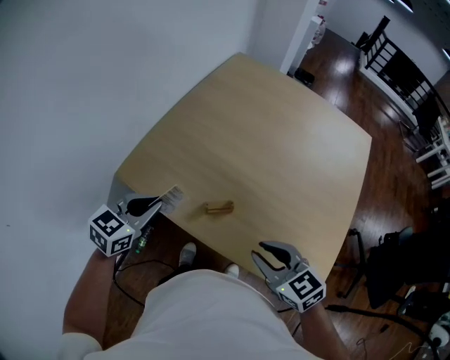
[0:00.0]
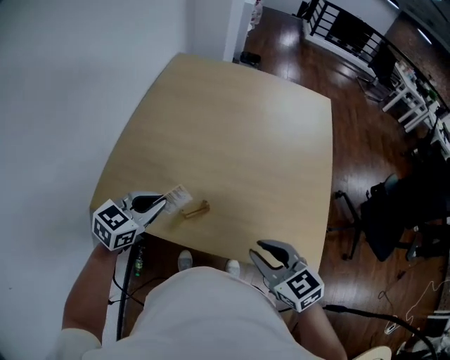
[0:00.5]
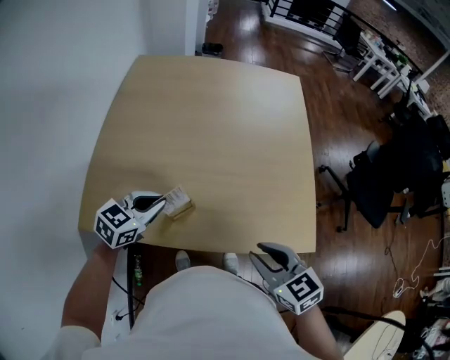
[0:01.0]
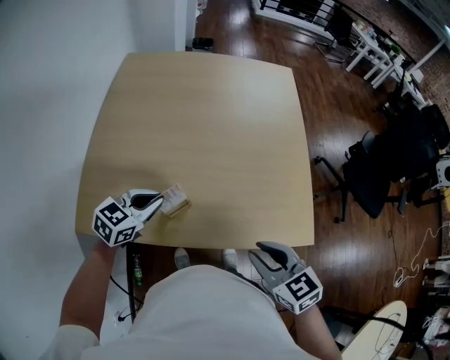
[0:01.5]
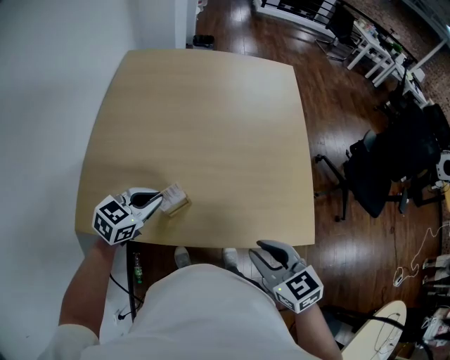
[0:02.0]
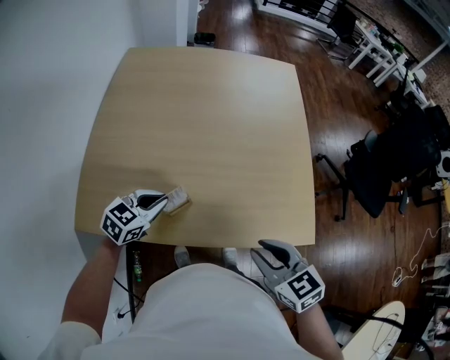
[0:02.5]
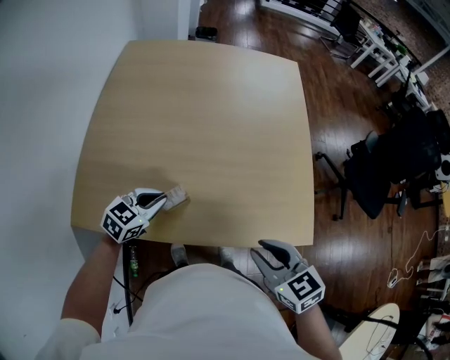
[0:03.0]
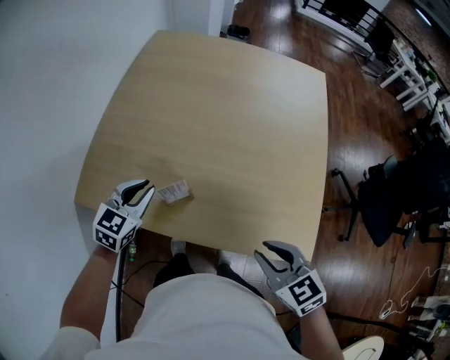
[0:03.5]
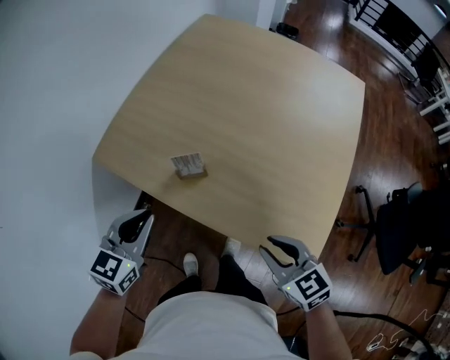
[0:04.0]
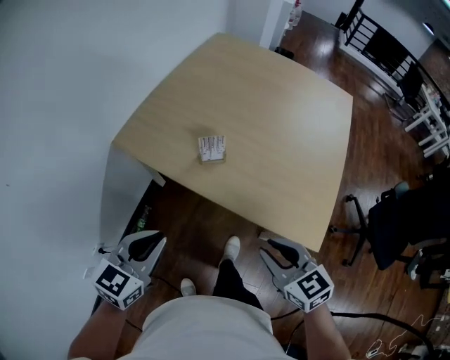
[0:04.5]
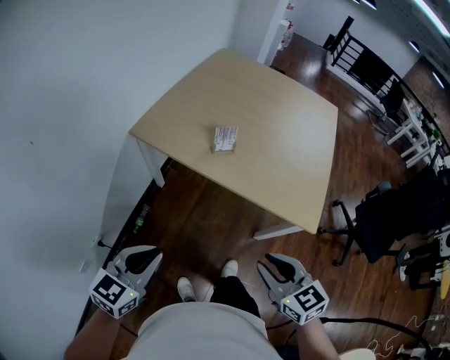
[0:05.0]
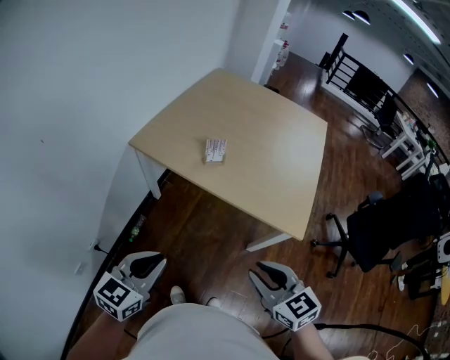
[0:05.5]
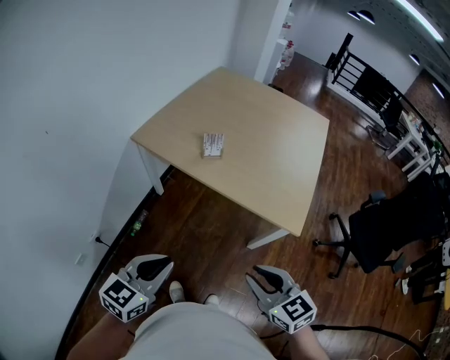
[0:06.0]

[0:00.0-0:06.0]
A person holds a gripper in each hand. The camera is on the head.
0:00.0 to 0:02.0: The left gripper moves roughly 15 cm, and turns by about 30 degrees, while the right gripper moves roughly 10 cm, and swivels about 30 degrees.
0:02.0 to 0:04.0: The right gripper changes place by roughly 5 cm, and swivels about 30 degrees. The left gripper ends up approximately 15 cm from where it was, and turns by about 40 degrees.
0:04.0 to 0:06.0: The two grippers go approximately 35 cm backward.

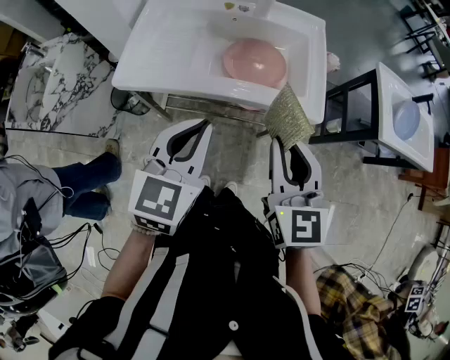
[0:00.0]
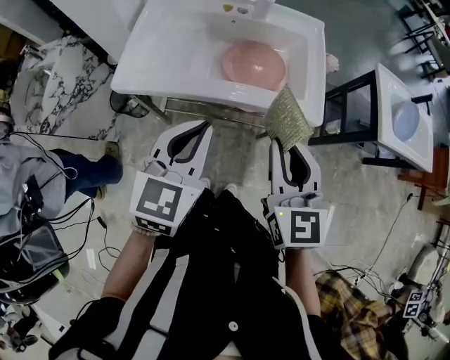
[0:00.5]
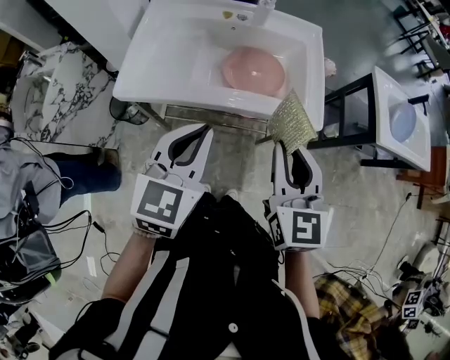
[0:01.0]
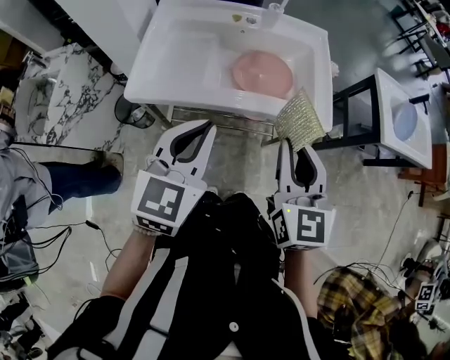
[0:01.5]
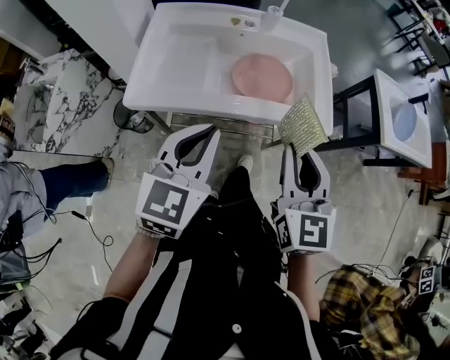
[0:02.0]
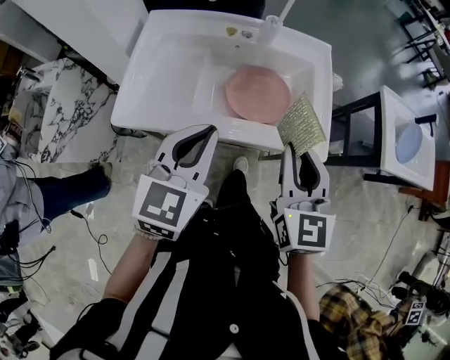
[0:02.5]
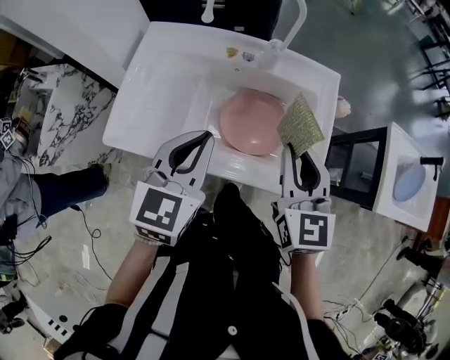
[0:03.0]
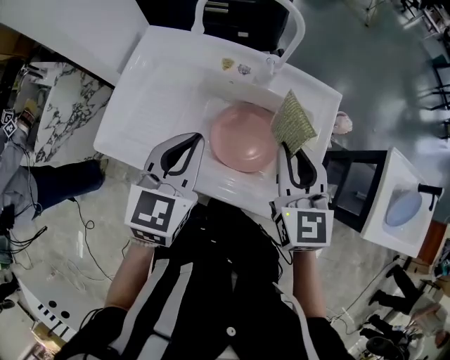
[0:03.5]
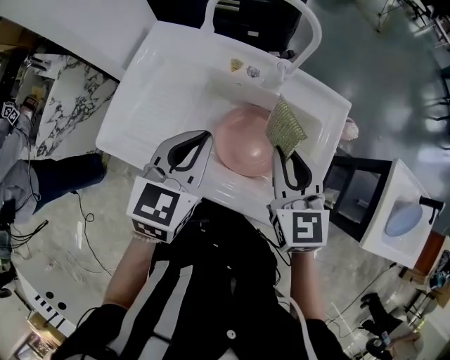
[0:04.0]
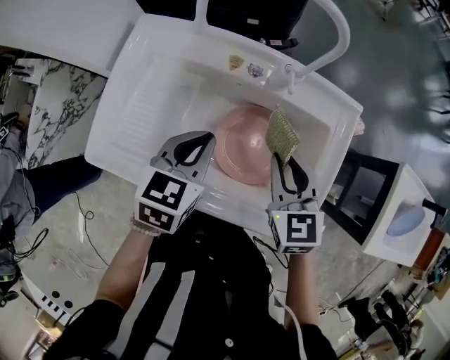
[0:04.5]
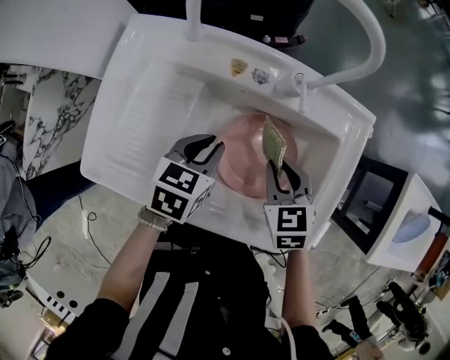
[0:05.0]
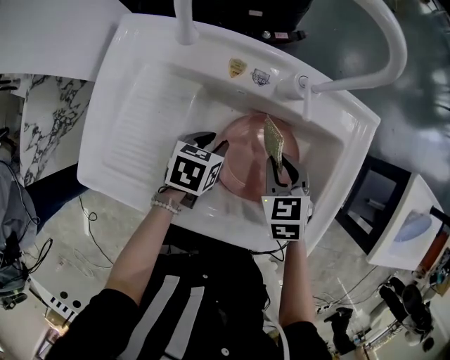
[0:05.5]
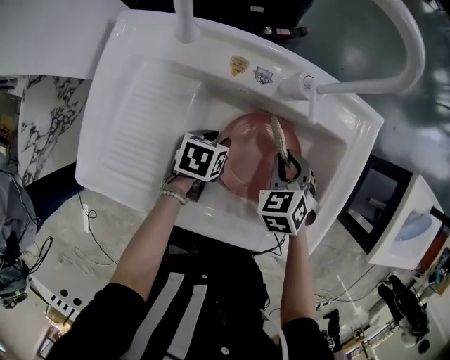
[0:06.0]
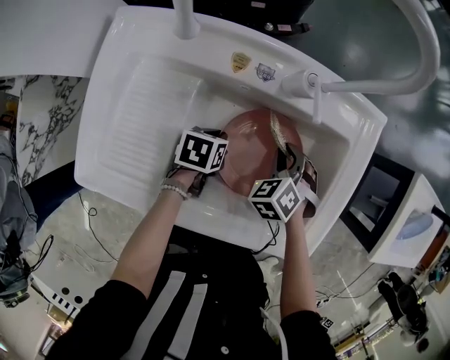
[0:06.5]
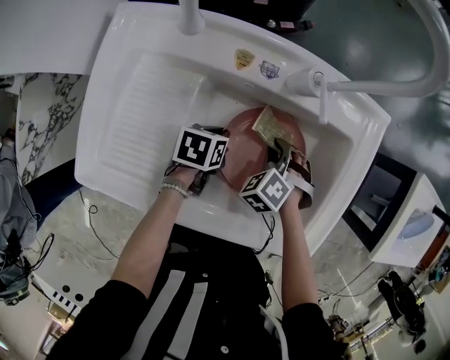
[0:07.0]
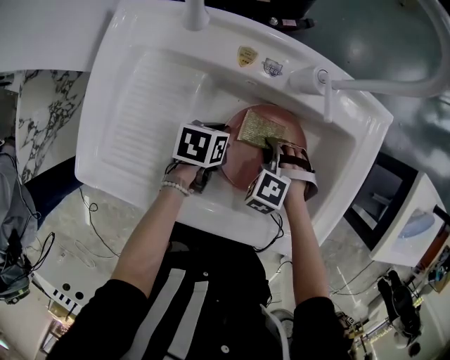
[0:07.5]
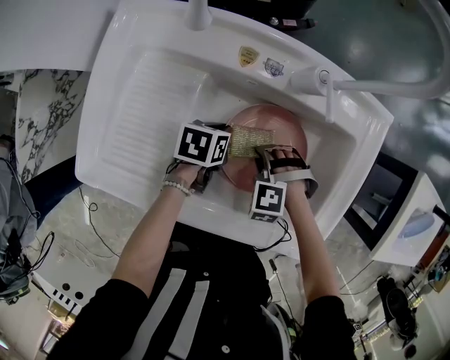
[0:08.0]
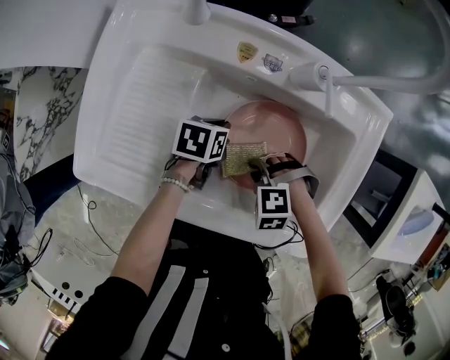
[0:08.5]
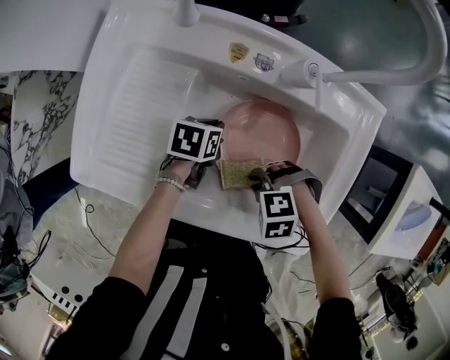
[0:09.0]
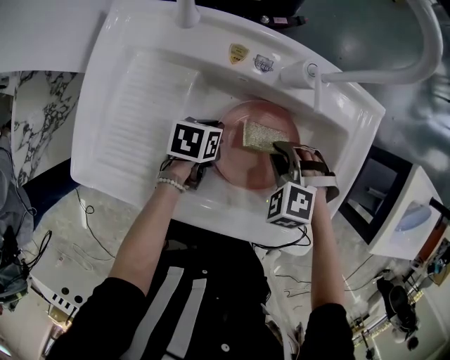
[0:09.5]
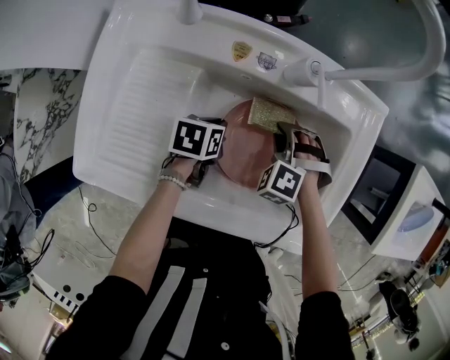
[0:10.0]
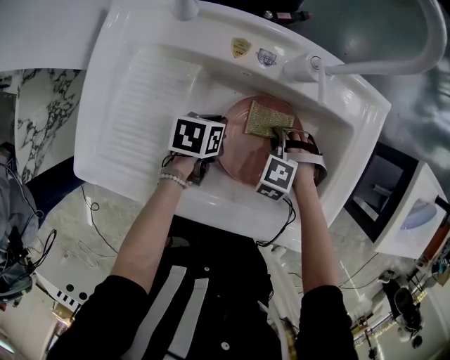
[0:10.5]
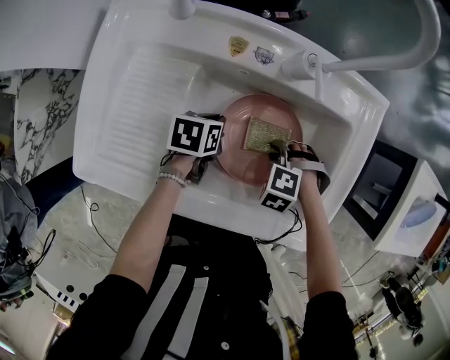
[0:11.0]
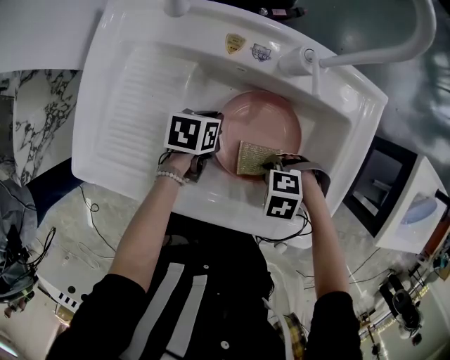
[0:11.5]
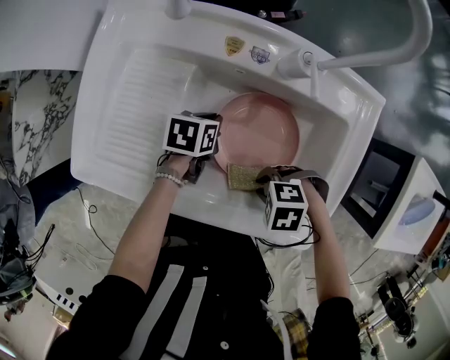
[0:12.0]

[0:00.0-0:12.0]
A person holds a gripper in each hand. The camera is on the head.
0:00.0 to 0:02.0: The left gripper heads to the left, covering some 5 cm.
0:02.0 to 0:04.0: Both grippers move forward, some 30 cm. The left gripper turns by approximately 20 degrees. Meanwhile the right gripper turns by some 30 degrees.
0:04.0 to 0:06.0: Both grippers move downward, roughly 25 cm. The left gripper tilts its fingers about 40 degrees downward, and opens its fingers, while the right gripper points its fingers some 40 degrees further downward.
0:06.0 to 0:08.0: The left gripper closes its fingers. Meanwhile the right gripper goes some 10 cm backward and downward, and twists approximately 60 degrees counterclockwise, seen from behind.
0:08.0 to 0:10.0: The right gripper moves approximately 10 cm, and changes its angle by some 20 degrees.
0:10.0 to 0:12.0: The right gripper ends up about 20 cm from where it was, and turns by some 50 degrees.

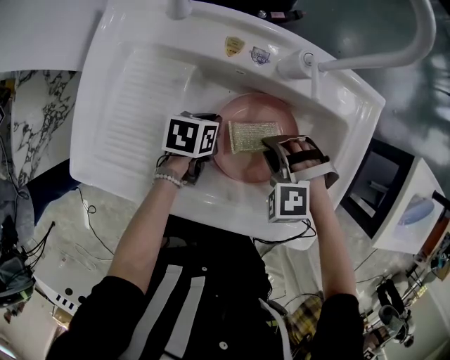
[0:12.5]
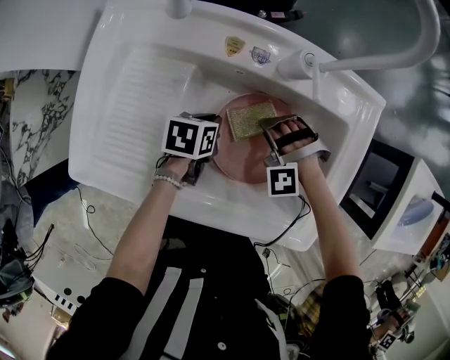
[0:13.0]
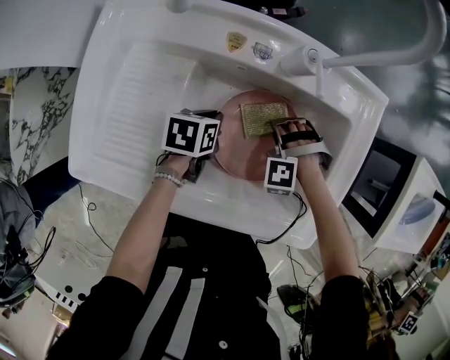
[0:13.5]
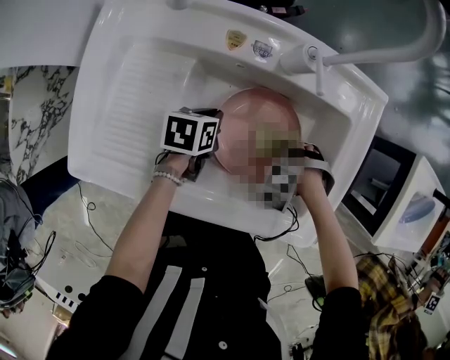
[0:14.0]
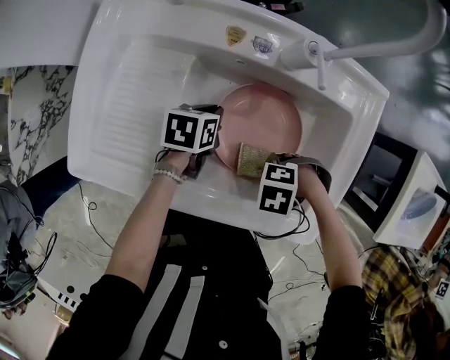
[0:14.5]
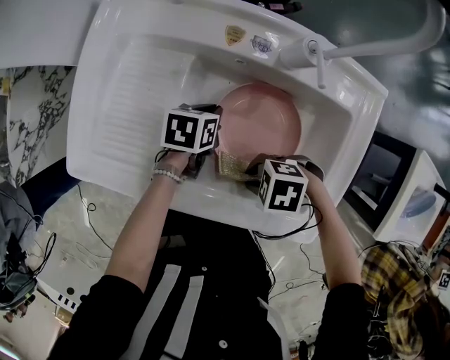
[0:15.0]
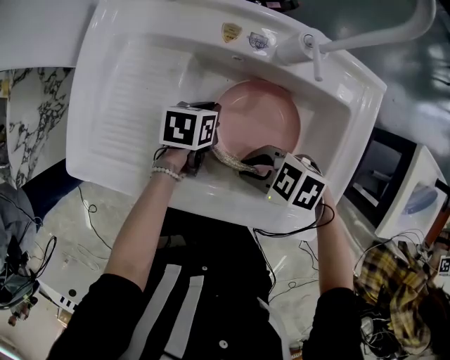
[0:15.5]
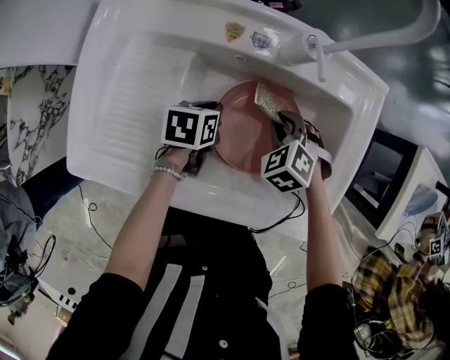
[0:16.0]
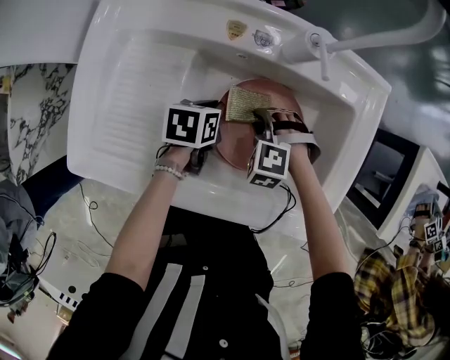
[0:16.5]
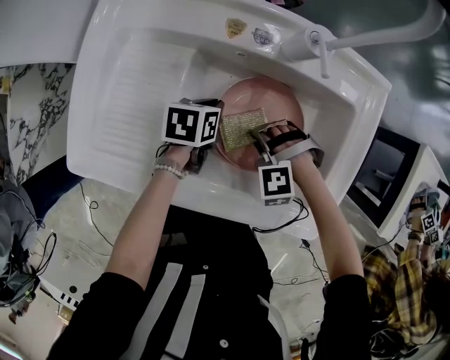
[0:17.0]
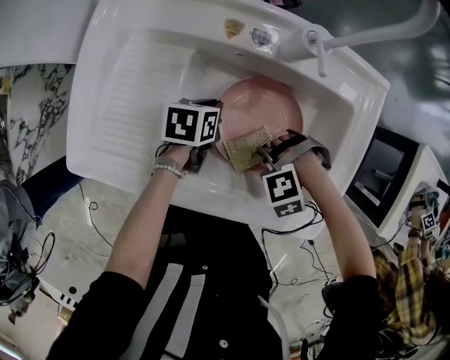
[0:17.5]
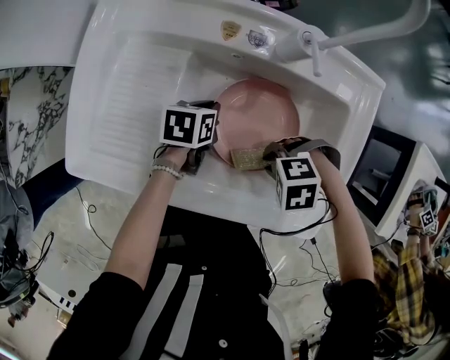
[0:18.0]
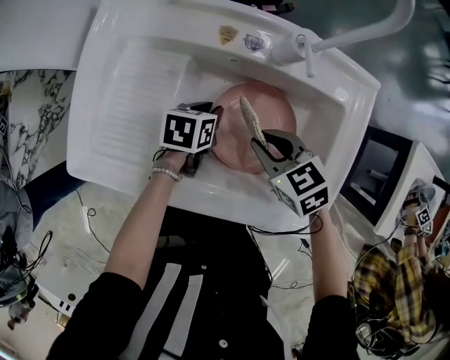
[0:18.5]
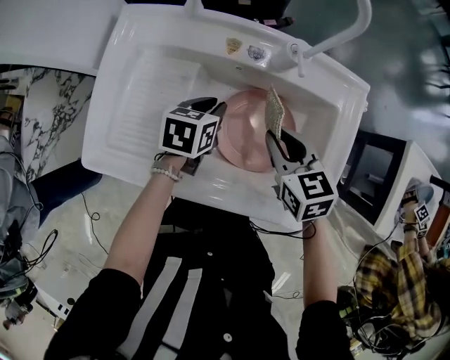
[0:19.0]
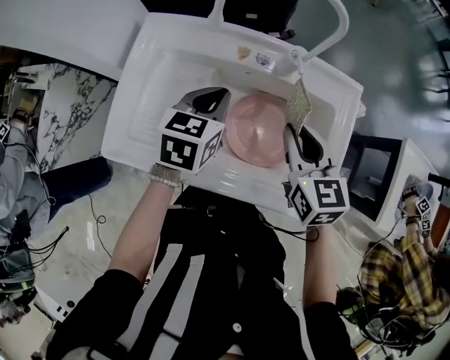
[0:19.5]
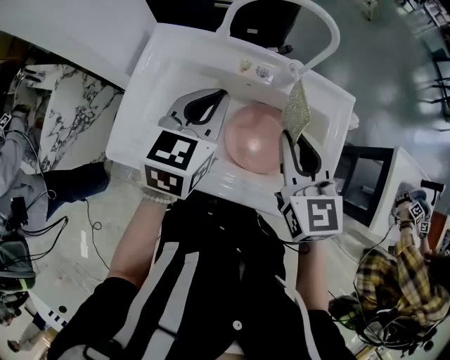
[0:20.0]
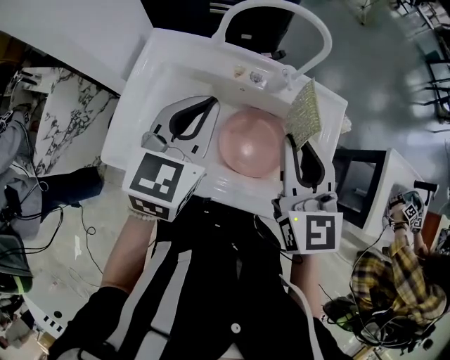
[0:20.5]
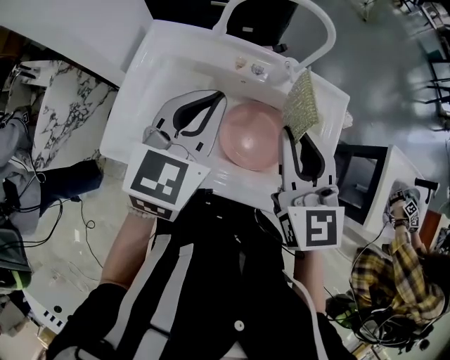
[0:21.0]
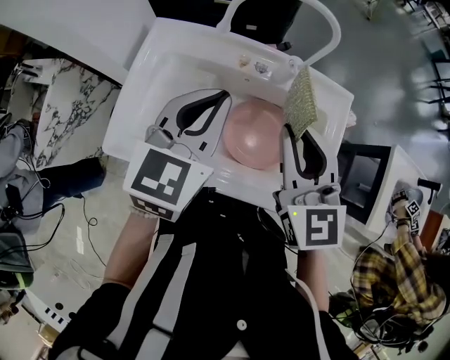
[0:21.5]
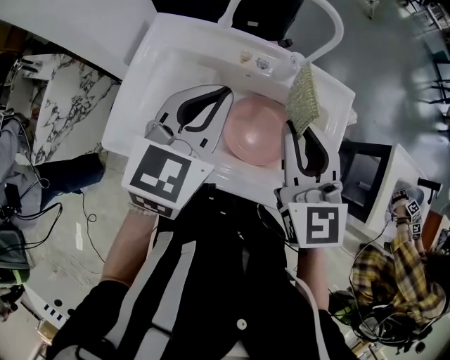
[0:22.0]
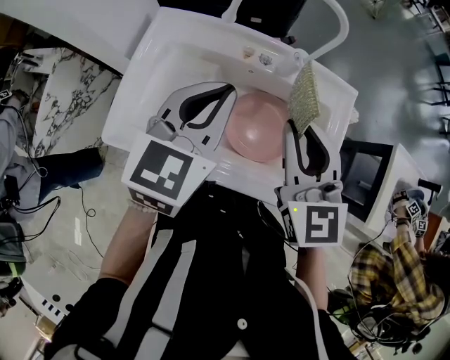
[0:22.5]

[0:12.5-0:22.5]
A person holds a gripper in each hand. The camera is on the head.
0:12.5 to 0:14.5: The right gripper ends up about 10 cm from where it was, and changes its angle by about 50 degrees.
0:14.5 to 0:16.5: The right gripper reaches about 5 cm upward, then returns, and changes its angle by approximately 40 degrees.
0:16.5 to 0:18.5: The right gripper goes about 10 cm upward, and twists roughly 50 degrees clockwise, seen from behind.
0:18.5 to 0:20.5: Both grippers travel together upward, about 30 cm. The left gripper tilts its fingers roughly 40 degrees upward. The right gripper tips its fingers upward by some 30 degrees.
0:20.5 to 0:22.5: The grippers move only a little.
